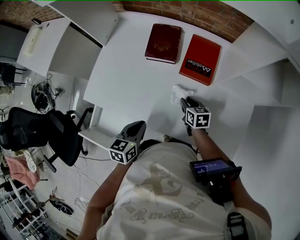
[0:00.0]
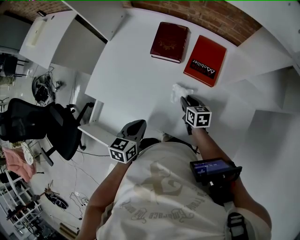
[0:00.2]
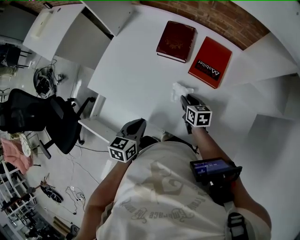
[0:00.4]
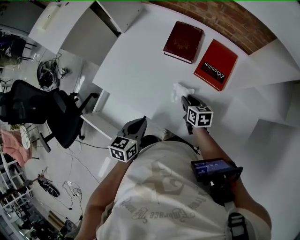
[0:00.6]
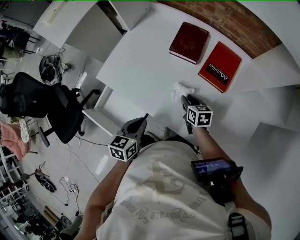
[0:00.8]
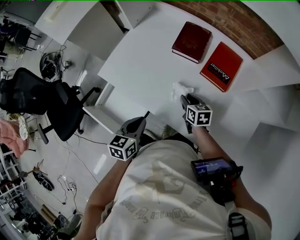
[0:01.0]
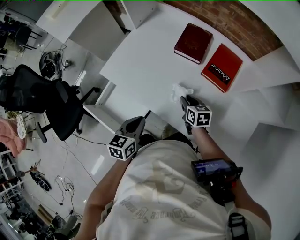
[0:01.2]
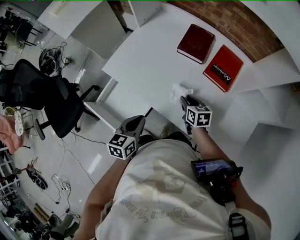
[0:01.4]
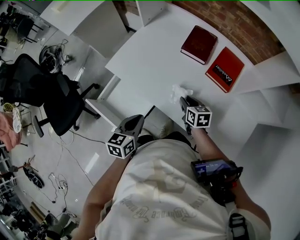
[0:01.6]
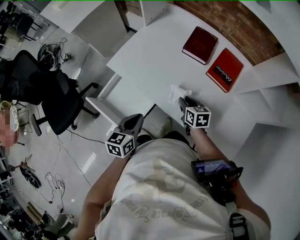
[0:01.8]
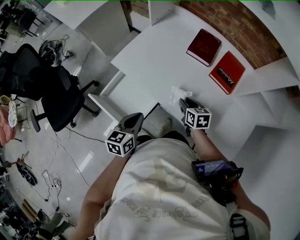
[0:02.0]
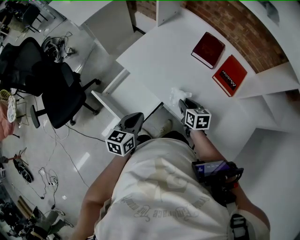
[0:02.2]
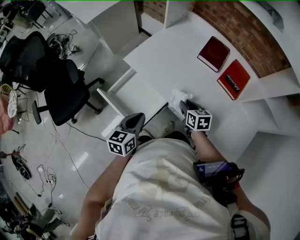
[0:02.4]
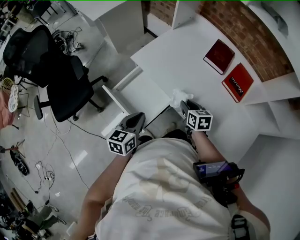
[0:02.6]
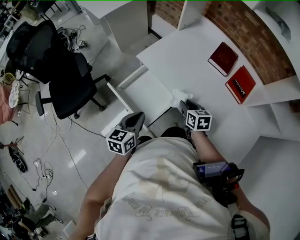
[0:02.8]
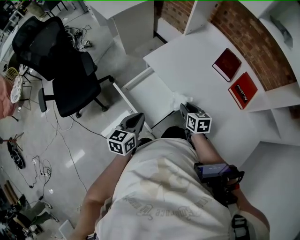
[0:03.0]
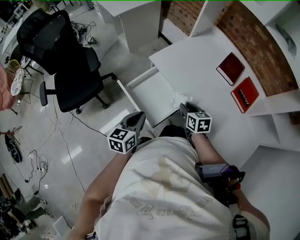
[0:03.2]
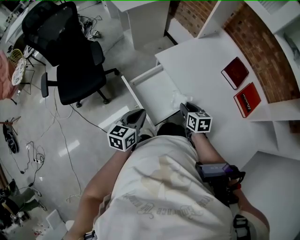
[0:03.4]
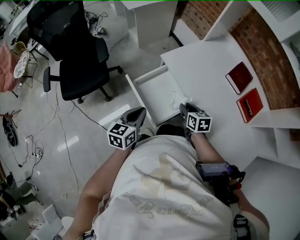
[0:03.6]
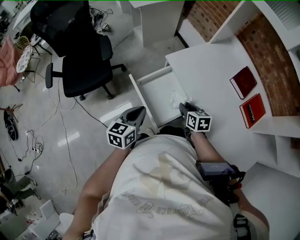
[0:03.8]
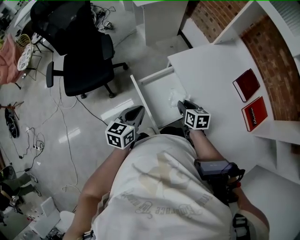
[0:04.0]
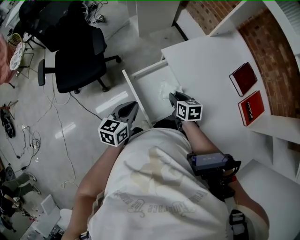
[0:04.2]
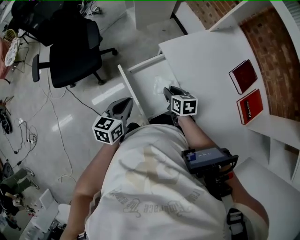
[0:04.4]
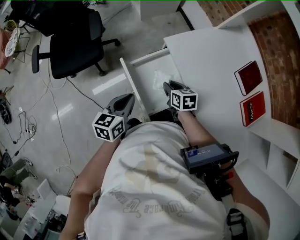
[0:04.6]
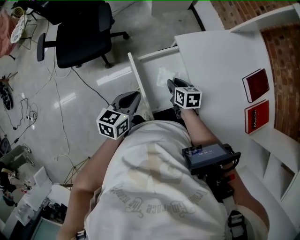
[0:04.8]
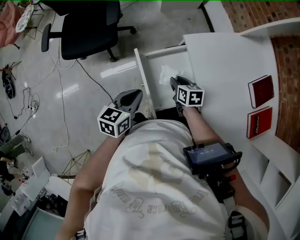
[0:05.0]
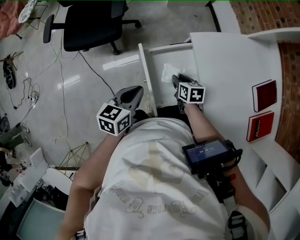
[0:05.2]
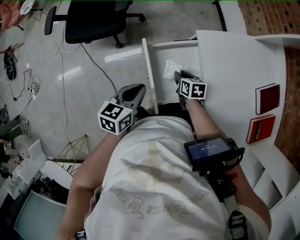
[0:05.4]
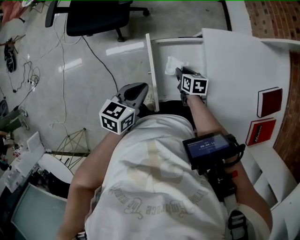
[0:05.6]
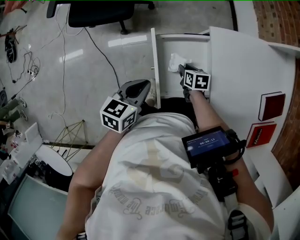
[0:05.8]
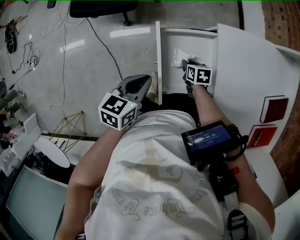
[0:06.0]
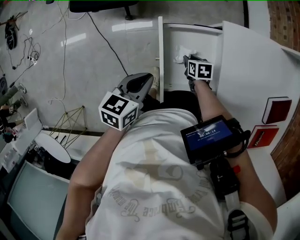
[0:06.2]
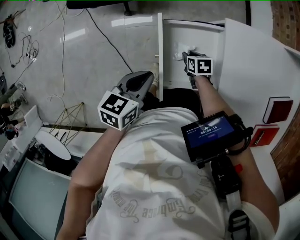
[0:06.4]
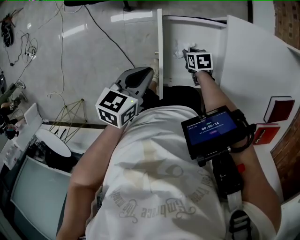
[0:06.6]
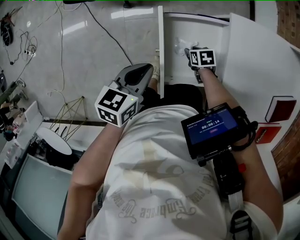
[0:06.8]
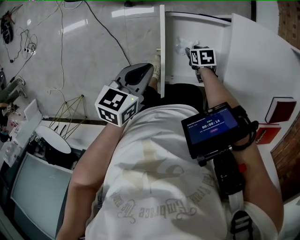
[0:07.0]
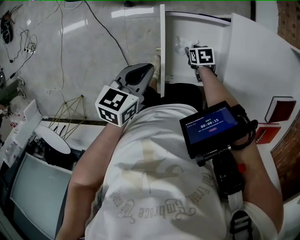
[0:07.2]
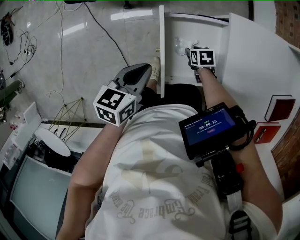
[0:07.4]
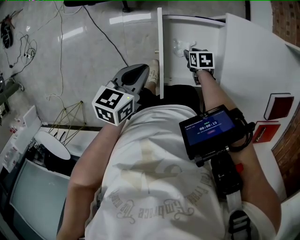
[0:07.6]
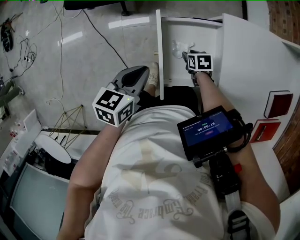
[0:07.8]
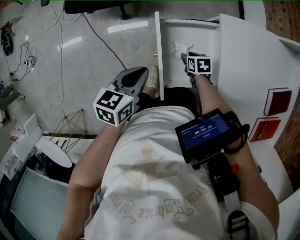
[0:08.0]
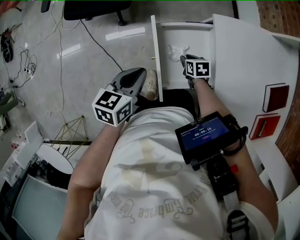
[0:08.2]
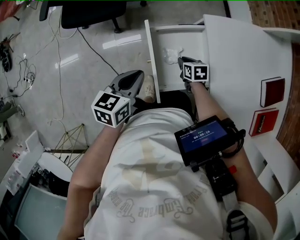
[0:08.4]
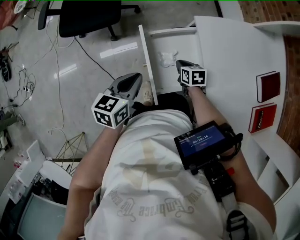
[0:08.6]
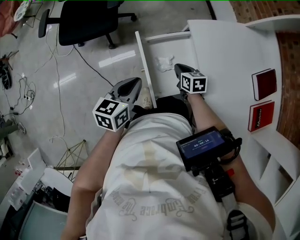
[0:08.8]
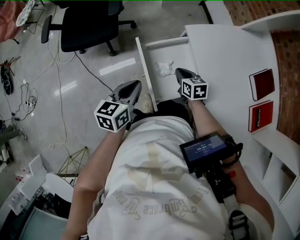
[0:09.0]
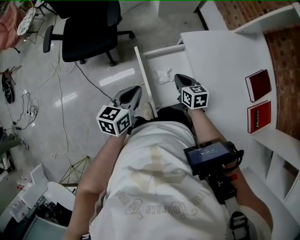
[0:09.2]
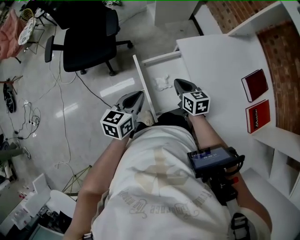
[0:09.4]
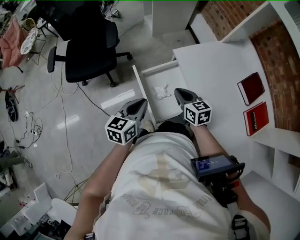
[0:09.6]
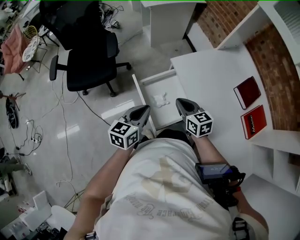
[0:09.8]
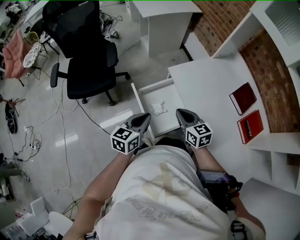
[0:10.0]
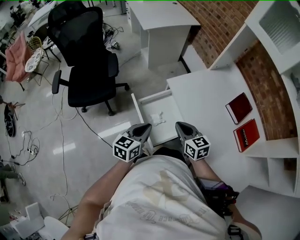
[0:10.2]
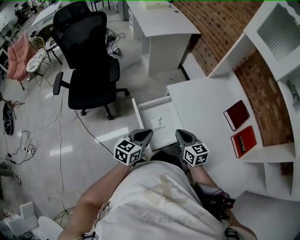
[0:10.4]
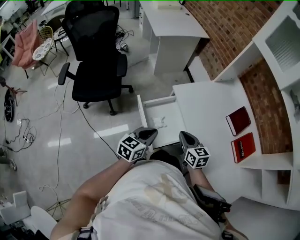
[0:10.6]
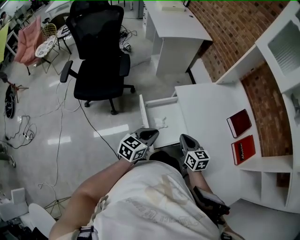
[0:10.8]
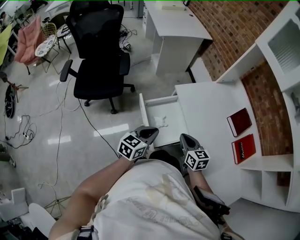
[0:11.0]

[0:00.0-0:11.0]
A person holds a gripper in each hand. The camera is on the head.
0:00.0 to 0:01.6: The right gripper heads to the left, covering about 10 cm; the left gripper travels to the left and backward by some 15 cm.
0:01.6 to 0:03.2: The grippers both shift to the left by about 20 cm.
0:03.2 to 0:04.8: The left gripper travels downward by approximately 5 cm. Meanwhile the right gripper moves to the left, downward and forward, some 20 cm, and swivels roughly 20 degrees.
0:04.8 to 0:06.2: The right gripper moves downward, about 15 cm, and changes its angle by about 20 degrees; the left gripper moves roughly 5 cm.
0:06.2 to 0:07.8: The grippers make only small movements.
0:07.8 to 0:09.4: The left gripper travels upward by approximately 5 cm, while the right gripper shifts some 25 cm upward, tilts its fingers roughly 30 degrees upward, and closes up.
0:09.4 to 0:11.0: The left gripper heads to the right, covering some 5 cm; the right gripper heads backward, upward and to the right, covering approximately 15 cm.

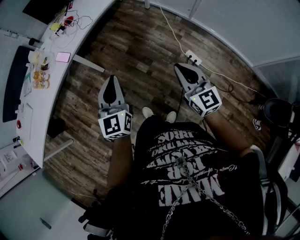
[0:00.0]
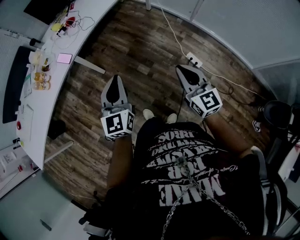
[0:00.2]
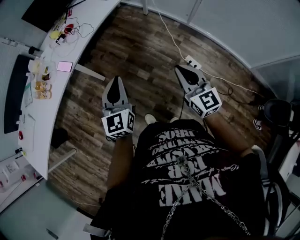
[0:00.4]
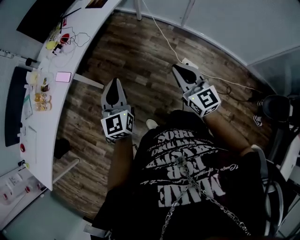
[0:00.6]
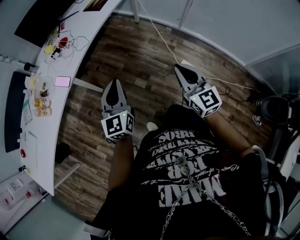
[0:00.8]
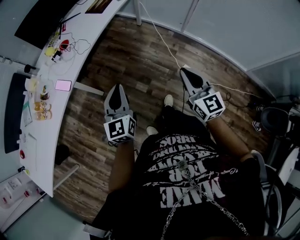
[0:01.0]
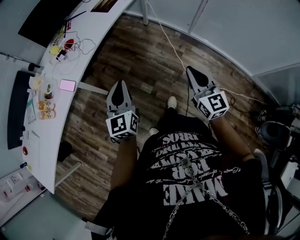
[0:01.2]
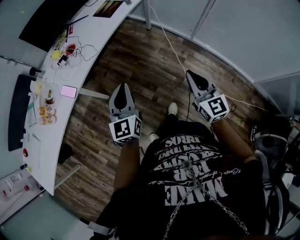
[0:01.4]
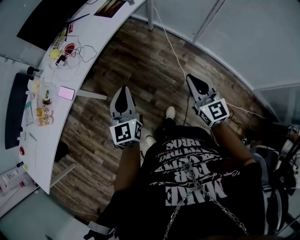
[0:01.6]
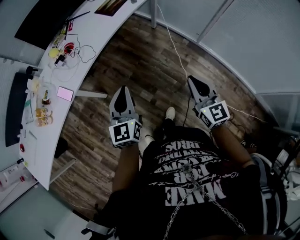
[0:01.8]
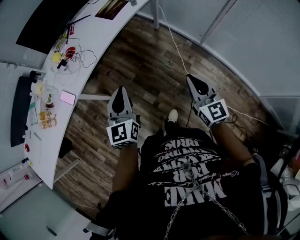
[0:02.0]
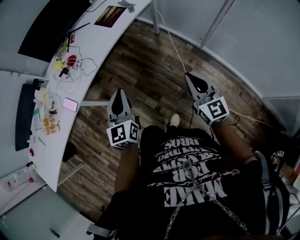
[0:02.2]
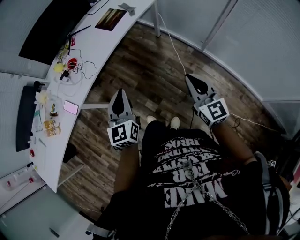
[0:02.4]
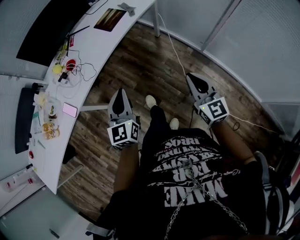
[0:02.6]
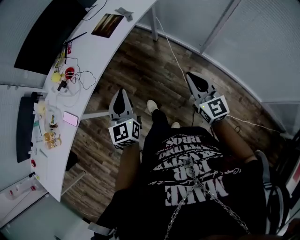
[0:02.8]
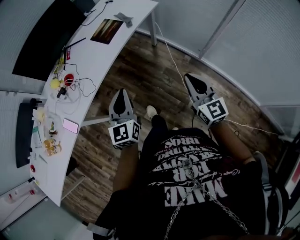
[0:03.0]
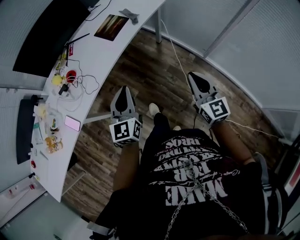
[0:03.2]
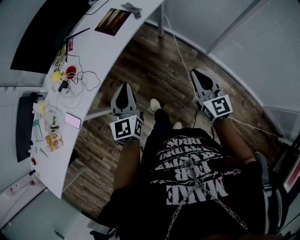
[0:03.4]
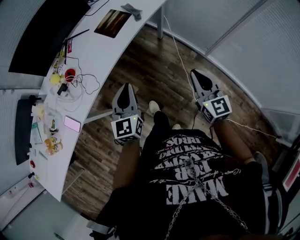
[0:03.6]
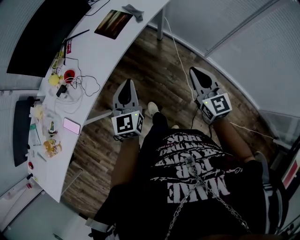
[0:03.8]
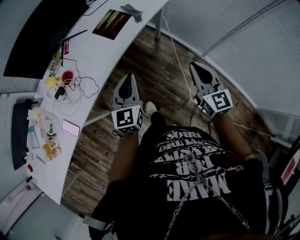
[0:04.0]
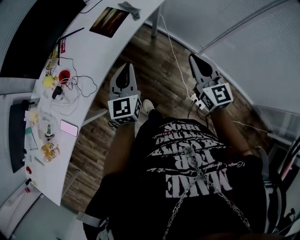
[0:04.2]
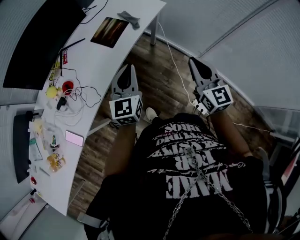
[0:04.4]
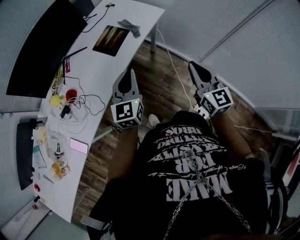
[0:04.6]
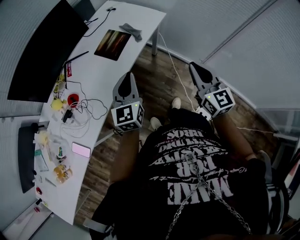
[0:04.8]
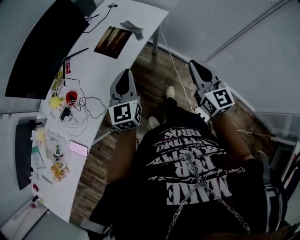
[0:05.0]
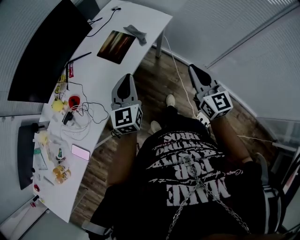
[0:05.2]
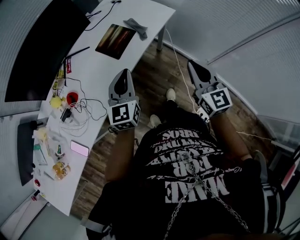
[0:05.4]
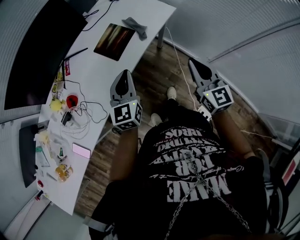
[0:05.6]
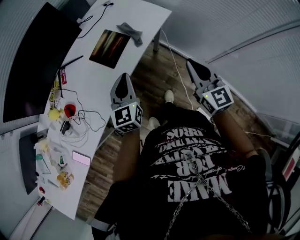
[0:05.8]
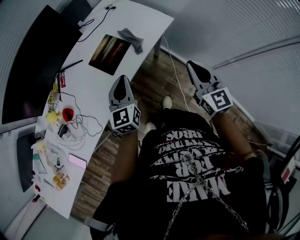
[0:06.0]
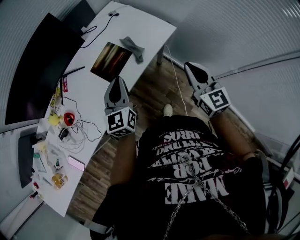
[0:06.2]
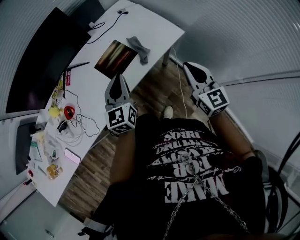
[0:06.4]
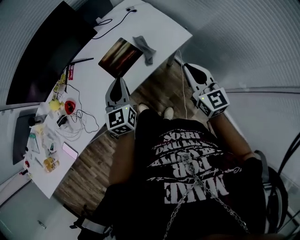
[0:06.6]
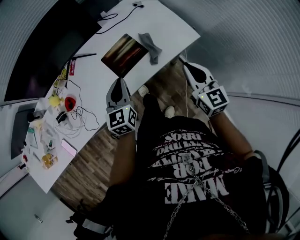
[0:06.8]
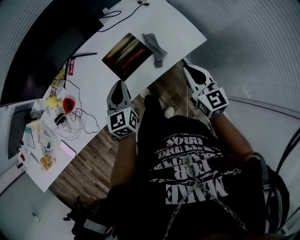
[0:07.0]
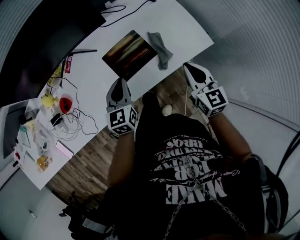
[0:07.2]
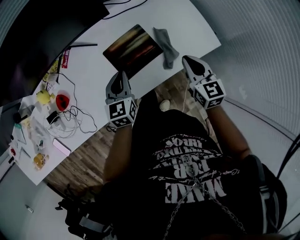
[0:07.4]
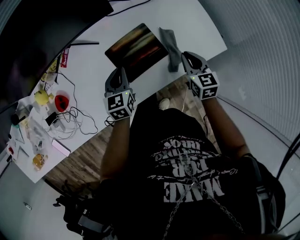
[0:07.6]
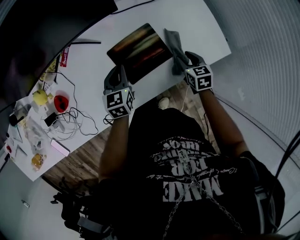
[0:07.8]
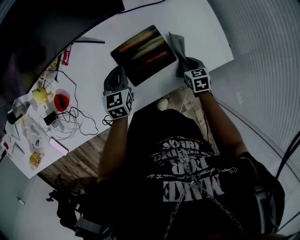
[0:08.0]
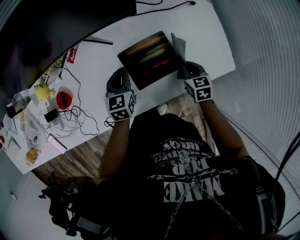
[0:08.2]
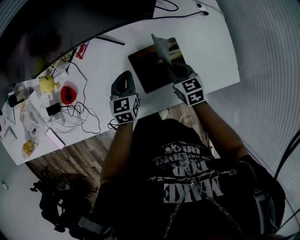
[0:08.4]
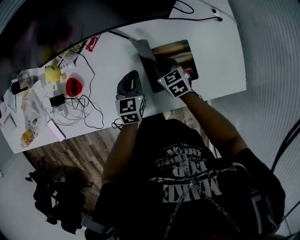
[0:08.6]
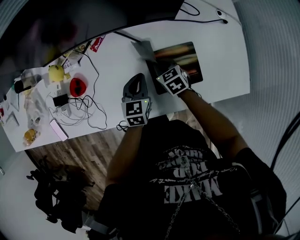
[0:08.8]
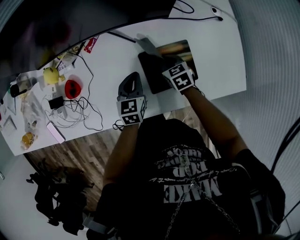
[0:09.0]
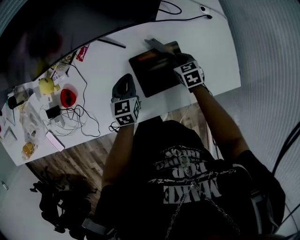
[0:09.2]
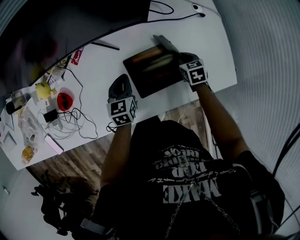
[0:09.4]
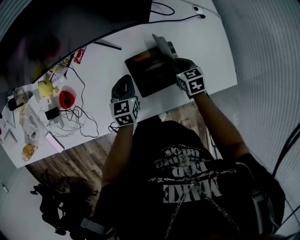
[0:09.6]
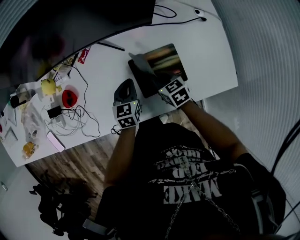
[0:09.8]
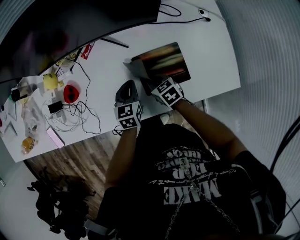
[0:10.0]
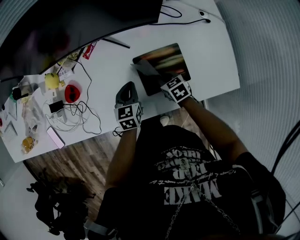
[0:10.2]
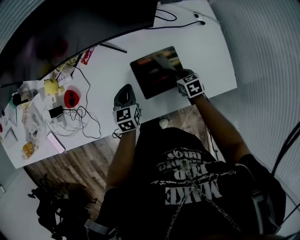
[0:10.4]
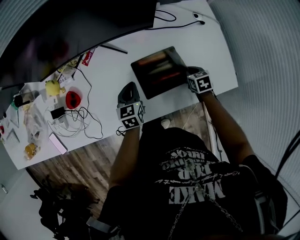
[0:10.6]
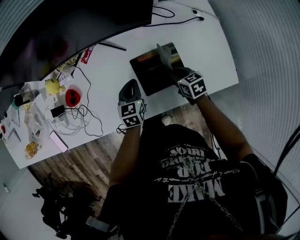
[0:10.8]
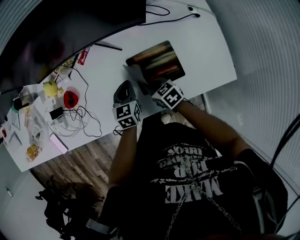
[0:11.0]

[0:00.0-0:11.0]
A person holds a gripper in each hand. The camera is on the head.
0:00.0 to 0:01.6: Both grippers travel together forward, roughly 25 cm.
0:01.6 to 0:03.2: The right gripper is displaced forward and to the right by approximately 25 cm; the left gripper heads forward, covering roughly 25 cm.
0:03.2 to 0:04.8: The two grippers go about 20 cm forward.
0:04.8 to 0:06.2: Both grippers travel together forward, some 20 cm.
0:06.2 to 0:07.8: The left gripper shifts approximately 35 cm downward, forward and to the left, and changes its angle by about 30 degrees, while the right gripper travels downward and forward by some 40 cm, points its fingers some 40 degrees further downward, and opens up.
0:07.8 to 0:09.4: The left gripper ends up approximately 5 cm from where it was, while the right gripper shifts roughly 15 cm forward, reaches roughly 25 cm to the left, then returns, and closes up.
0:09.4 to 0:11.0: The right gripper moves left and right over roughly 20 cm, changing direction 2 times, and changes its angle by approximately 30 degrees.

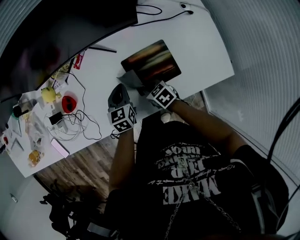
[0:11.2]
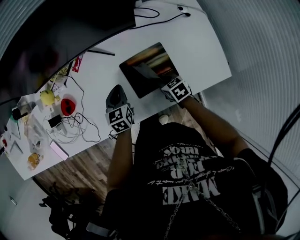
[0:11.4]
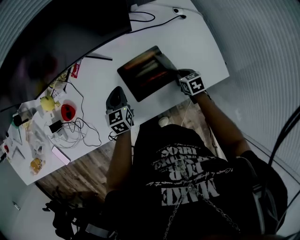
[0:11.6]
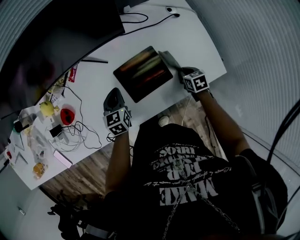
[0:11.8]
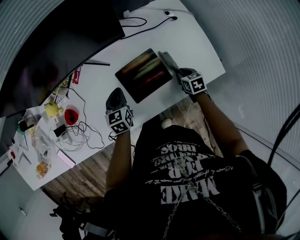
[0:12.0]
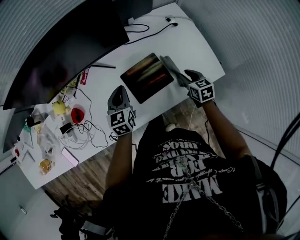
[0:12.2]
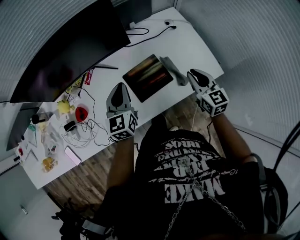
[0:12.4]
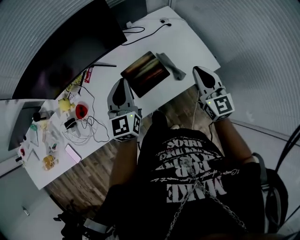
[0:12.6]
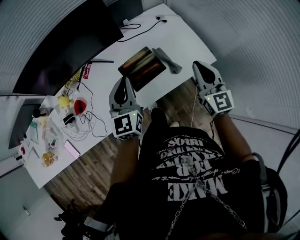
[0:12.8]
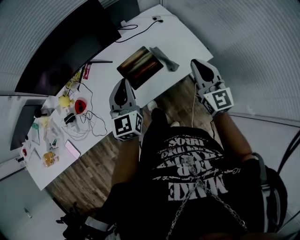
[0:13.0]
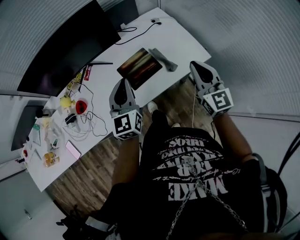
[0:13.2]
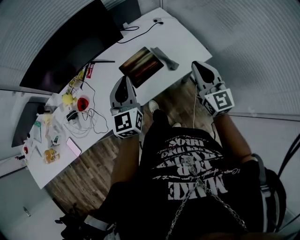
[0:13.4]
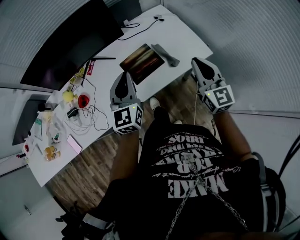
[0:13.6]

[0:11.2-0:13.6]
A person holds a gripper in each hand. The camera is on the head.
0:11.2 to 0:12.4: Both grippers move upward, roughly 25 cm. The right gripper points its fingers roughly 30 degrees further upward. The left gripper swivels some 20 degrees.
0:12.4 to 0:13.6: The right gripper is displaced backward and upward by about 20 cm, and changes its angle by some 20 degrees. The left gripper goes some 15 cm backward, upward and to the right.
